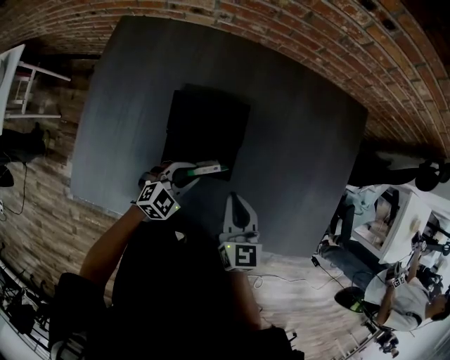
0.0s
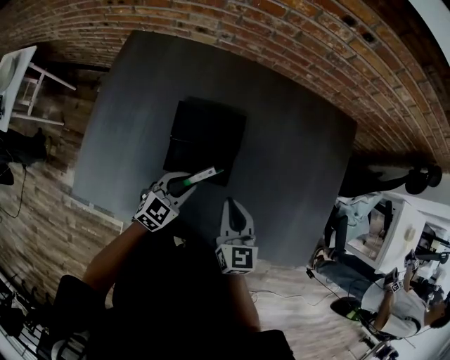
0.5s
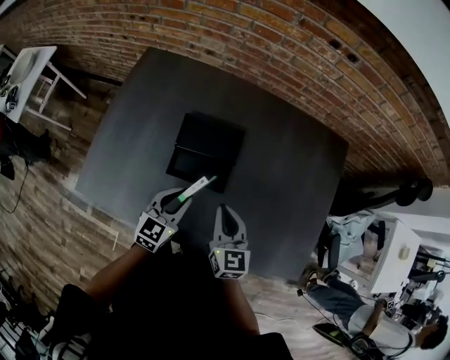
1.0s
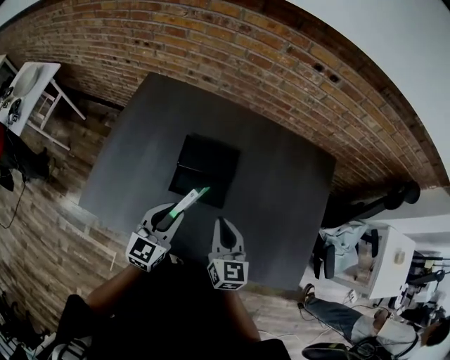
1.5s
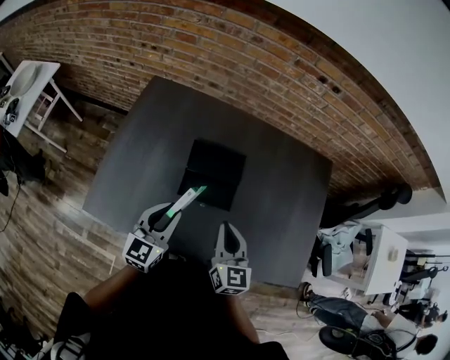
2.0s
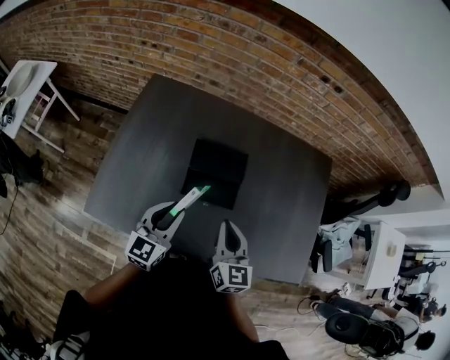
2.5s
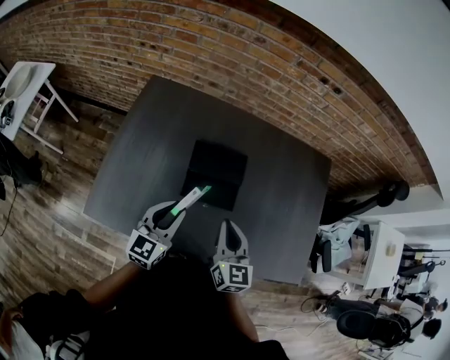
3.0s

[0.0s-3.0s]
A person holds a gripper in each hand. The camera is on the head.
0.0s to 1.5s: The right gripper moves upward and backward, some 10 cm. Meanwhile the left gripper moves upward and backward, about 20 cm, and changes its angle by roughly 50 degrees.
1.5s to 3.0s: The grippers both shift to the left by some 5 cm.

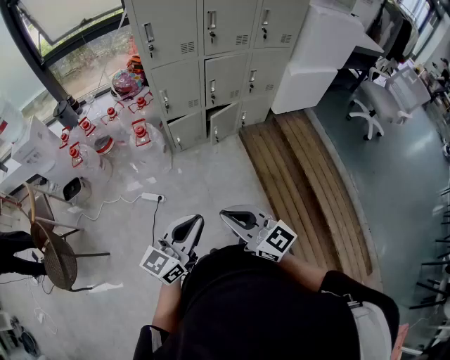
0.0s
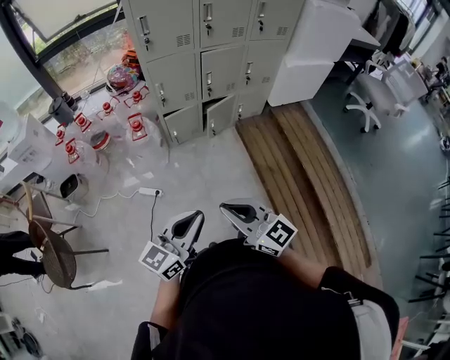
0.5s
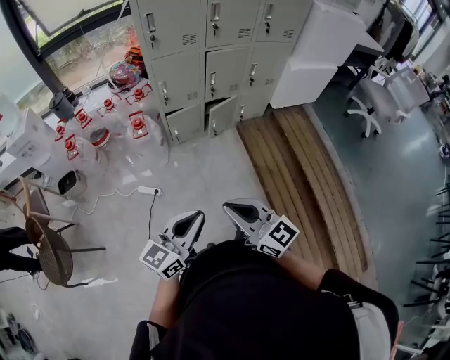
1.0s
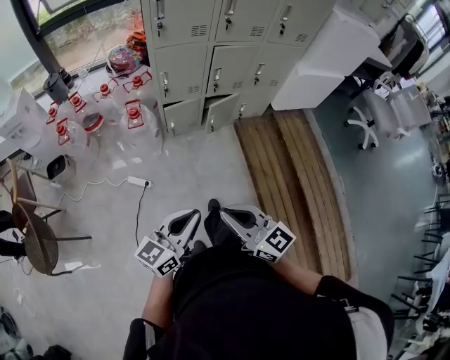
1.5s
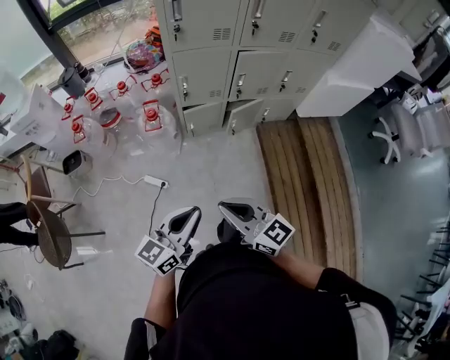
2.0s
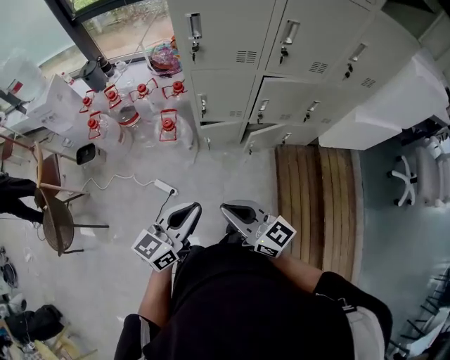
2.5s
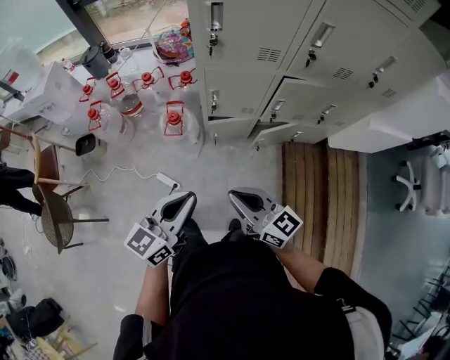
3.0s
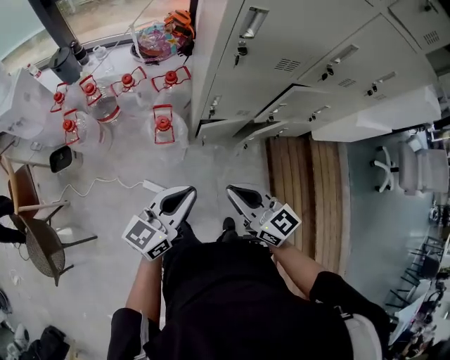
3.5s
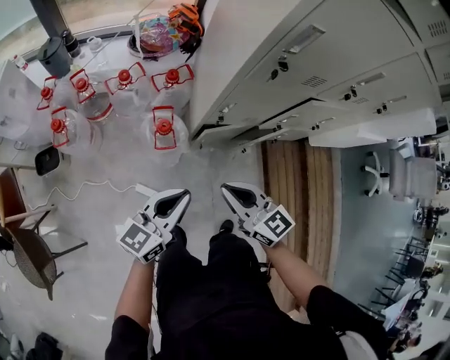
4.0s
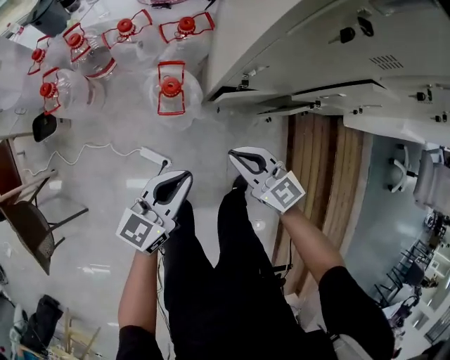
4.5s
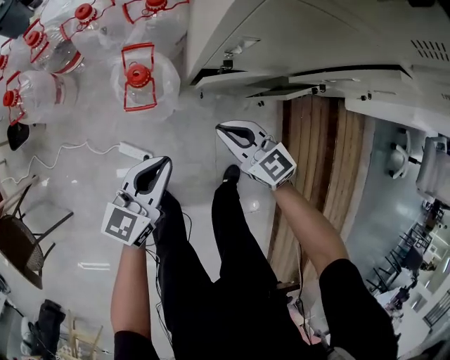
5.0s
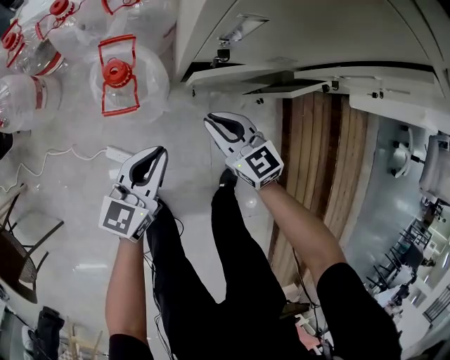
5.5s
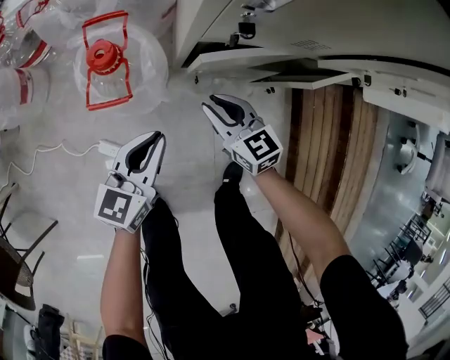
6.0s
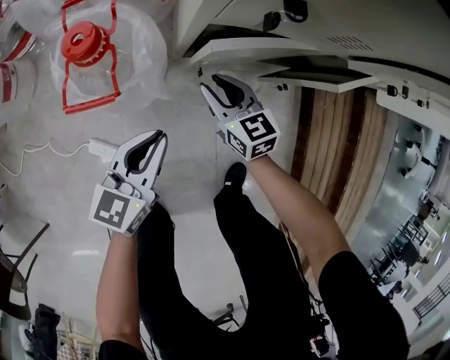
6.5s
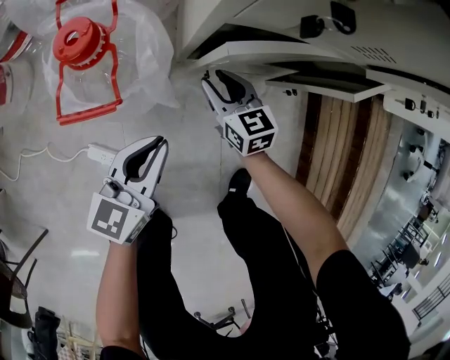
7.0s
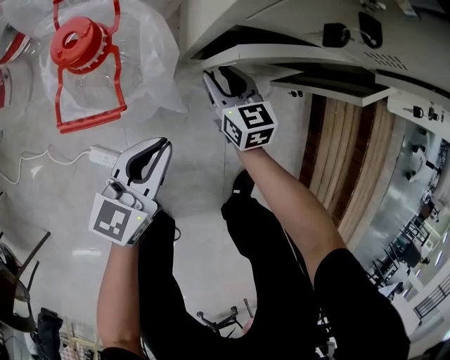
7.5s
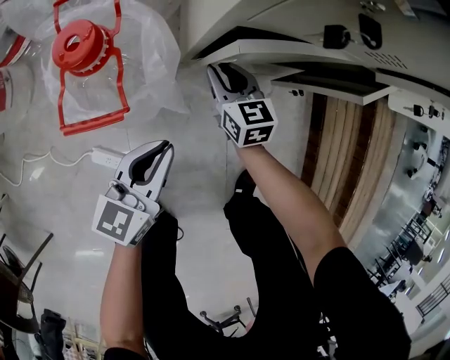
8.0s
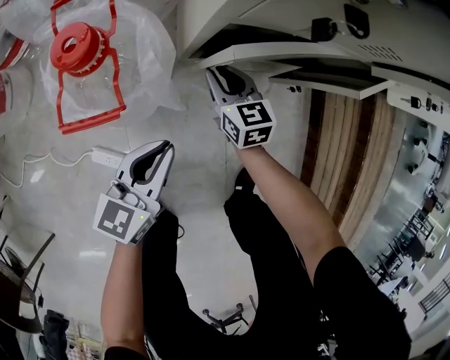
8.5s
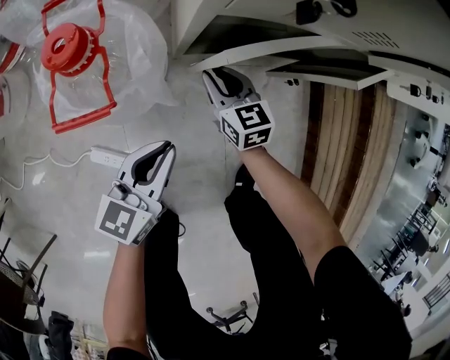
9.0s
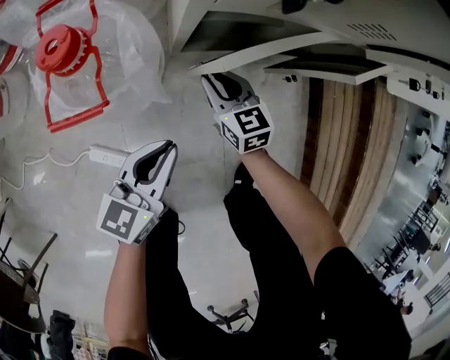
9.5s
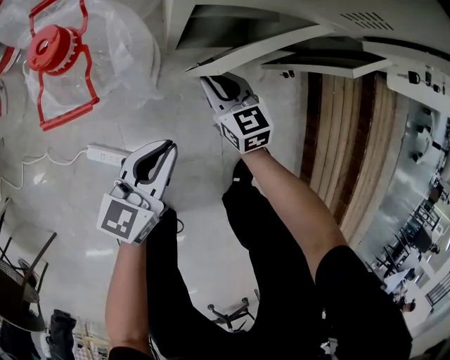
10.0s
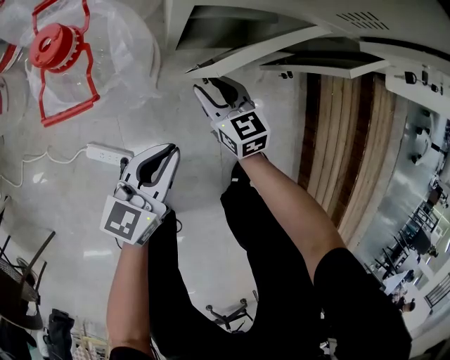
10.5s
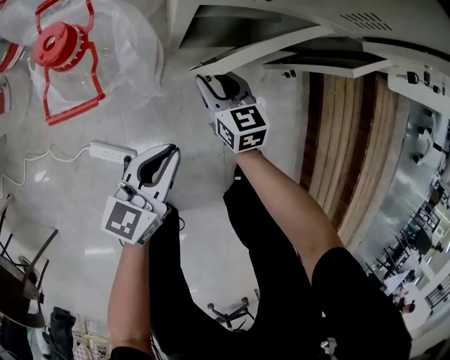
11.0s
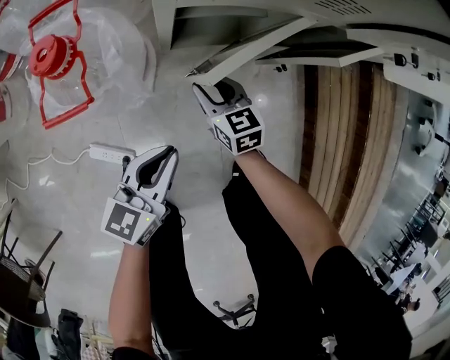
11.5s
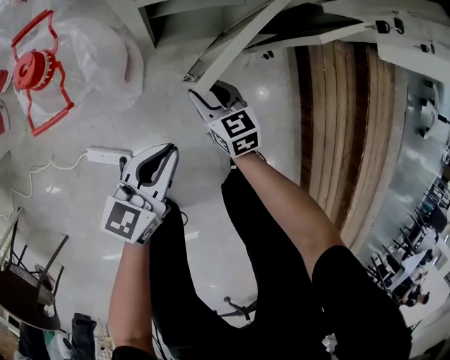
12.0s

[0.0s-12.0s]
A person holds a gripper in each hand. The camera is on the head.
0.0s to 2.0s: Both grippers travel together forward, approximately 15 cm.
2.0s to 4.0s: Both grippers travel together forward and to the left, some 40 cm.
4.0s to 6.0s: The grippers both shift downward by approximately 50 cm.
6.0s to 8.0s: The left gripper travels downward by about 10 cm, while the right gripper moves downward and forward, roughly 20 cm.
8.0s to 10.0s: The right gripper goes about 5 cm backward; the left gripper moves about 5 cm.
10.0s to 12.0s: The right gripper shifts some 5 cm backward. The left gripper goes about 5 cm to the right.

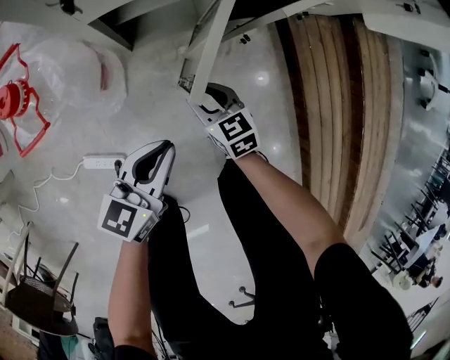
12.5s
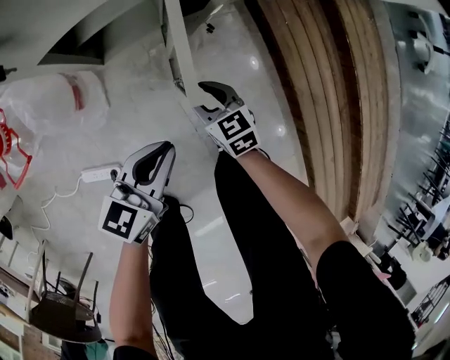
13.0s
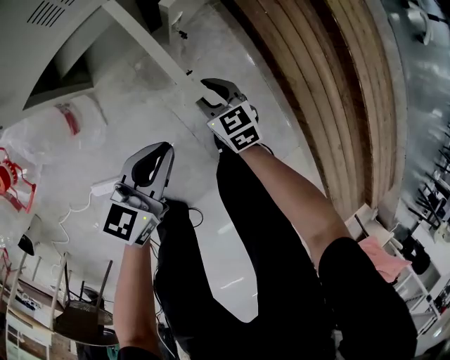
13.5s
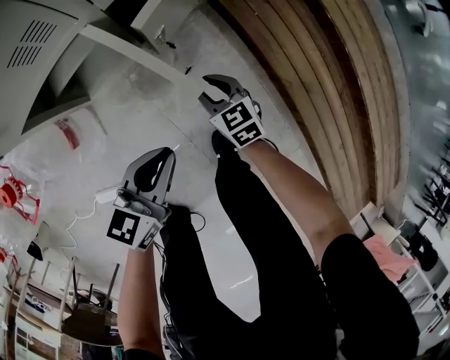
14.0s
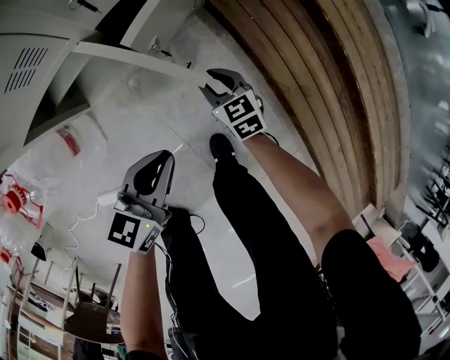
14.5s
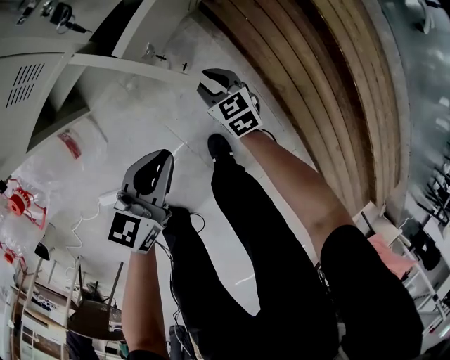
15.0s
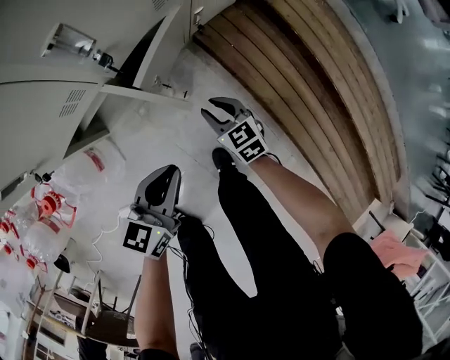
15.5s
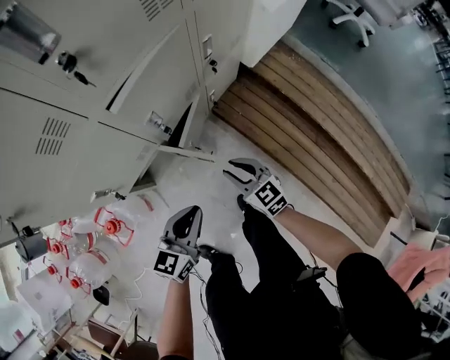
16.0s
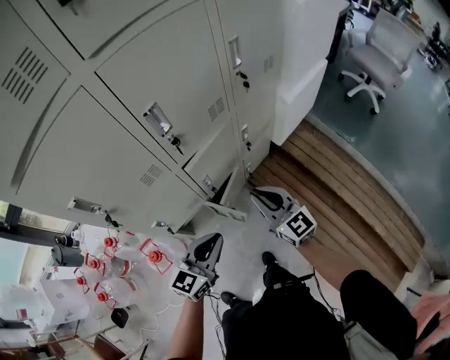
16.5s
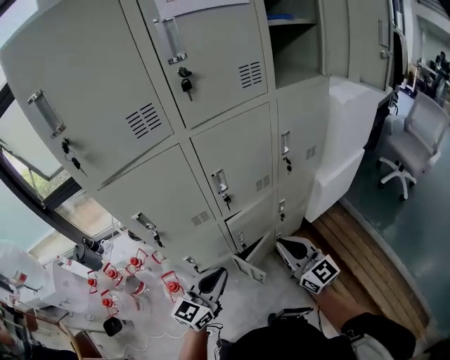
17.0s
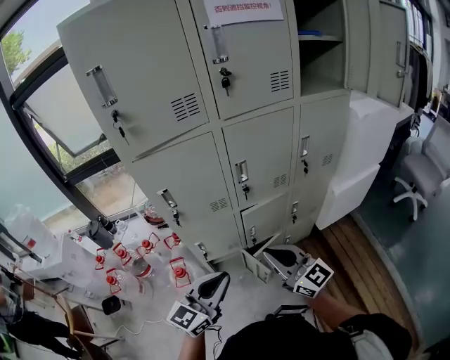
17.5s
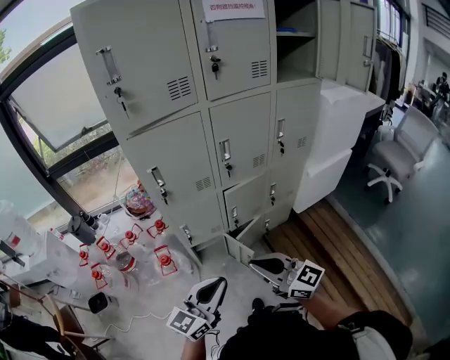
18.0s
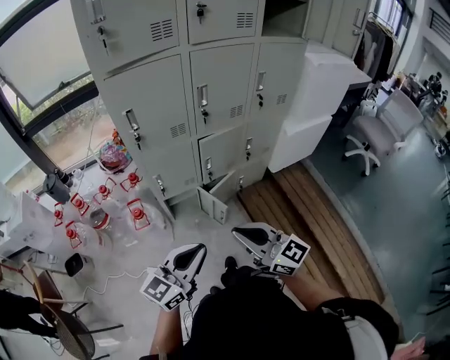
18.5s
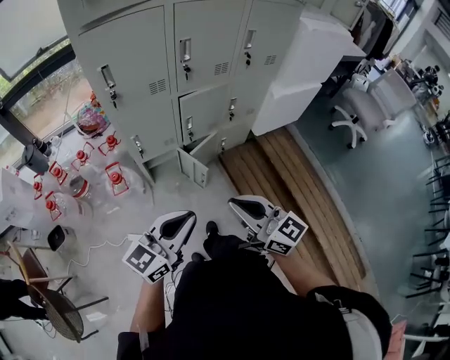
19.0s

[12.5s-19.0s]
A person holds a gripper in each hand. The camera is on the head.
12.5s to 14.5s: The grippers both shift to the right and forward by about 20 cm.
14.5s to 17.0s: Both grippers travel together upward, approximately 70 cm. The right gripper tips its fingers upward by approximately 50 degrees, and closes up, while the left gripper changes its angle by approximately 40 degrees.
17.0s to 19.0s: The two grippers go about 30 cm backward.

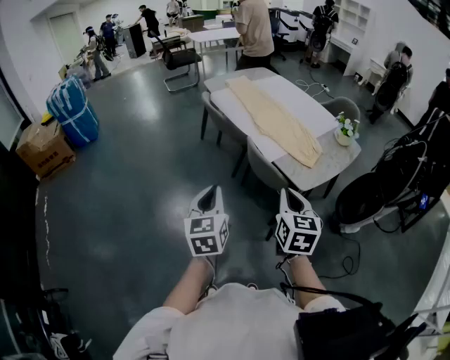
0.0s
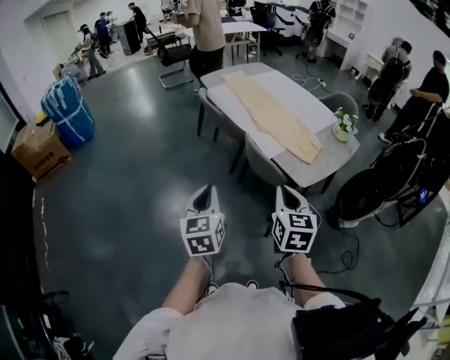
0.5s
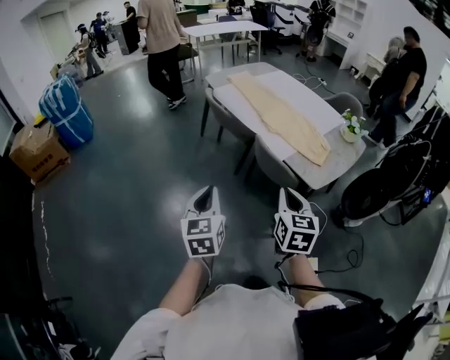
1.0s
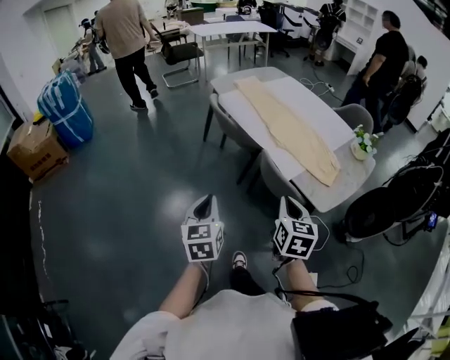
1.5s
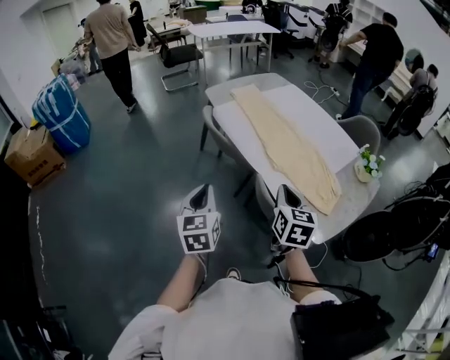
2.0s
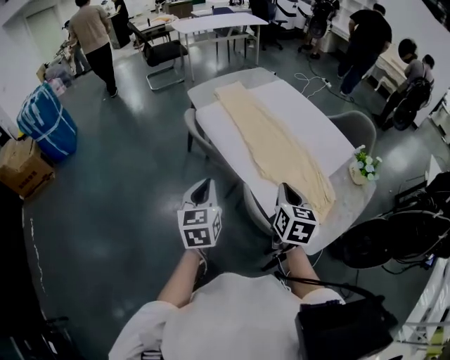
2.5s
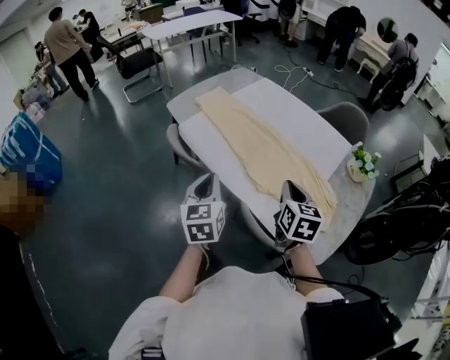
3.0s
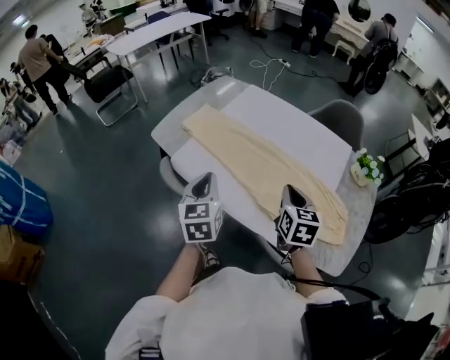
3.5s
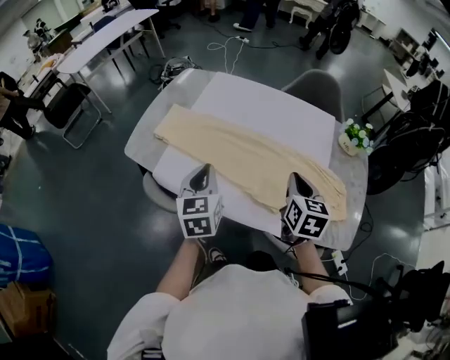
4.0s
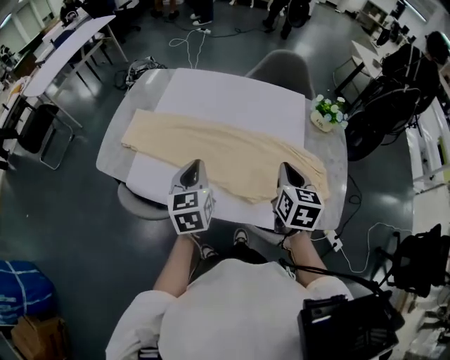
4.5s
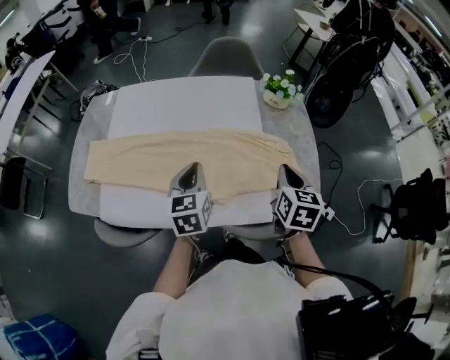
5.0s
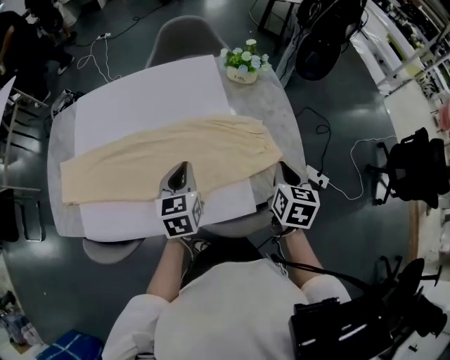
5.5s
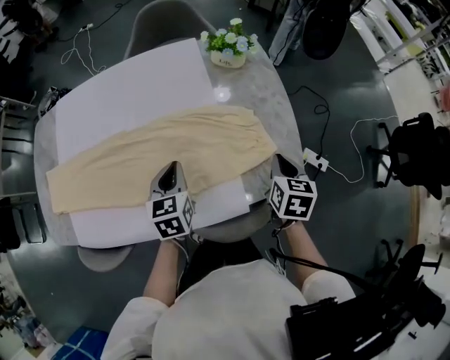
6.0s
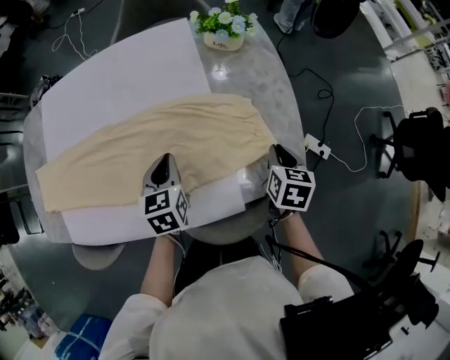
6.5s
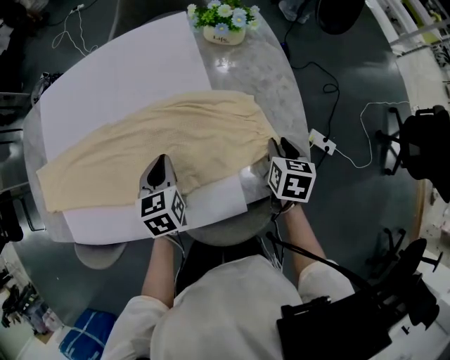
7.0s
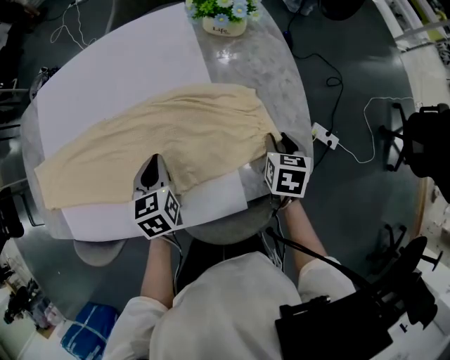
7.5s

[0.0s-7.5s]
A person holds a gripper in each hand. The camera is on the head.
0.0s to 2.0s: The two grippers go roughly 30 cm forward.
2.0s to 4.0s: The right gripper shifts by about 35 cm, and rotates approximately 40 degrees; the left gripper shifts by roughly 50 cm, and rotates approximately 40 degrees.
4.0s to 5.5s: The left gripper changes place by about 30 cm, and rotates roughly 30 degrees, while the right gripper changes place by roughly 30 cm, and swivels some 40 degrees.
5.5s to 7.5s: The left gripper heads downward, covering approximately 15 cm. The right gripper travels downward and forward by roughly 20 cm, and opens.
